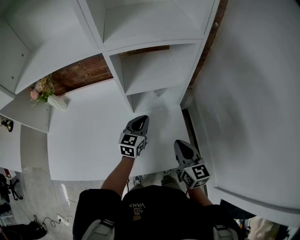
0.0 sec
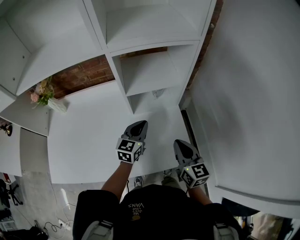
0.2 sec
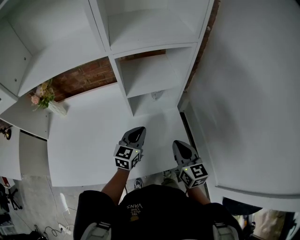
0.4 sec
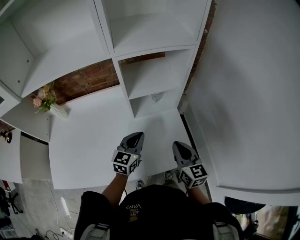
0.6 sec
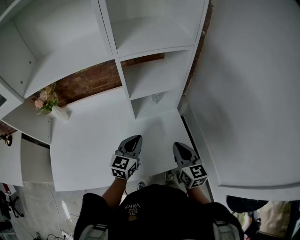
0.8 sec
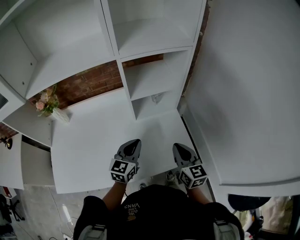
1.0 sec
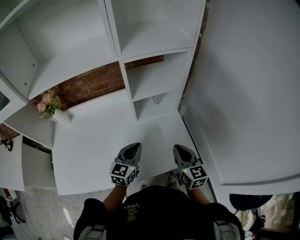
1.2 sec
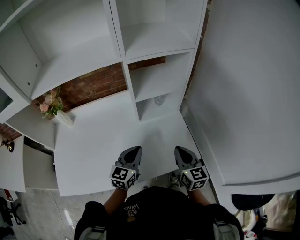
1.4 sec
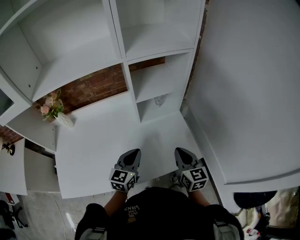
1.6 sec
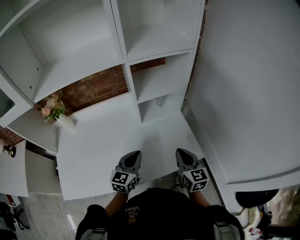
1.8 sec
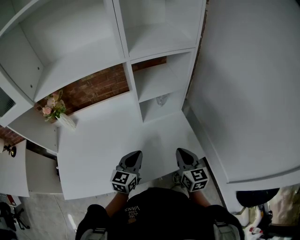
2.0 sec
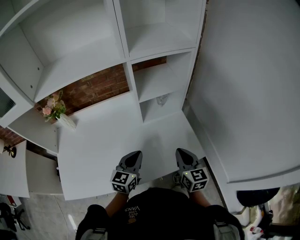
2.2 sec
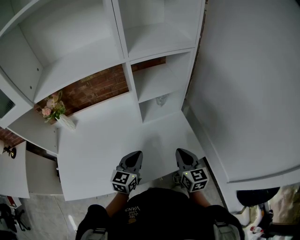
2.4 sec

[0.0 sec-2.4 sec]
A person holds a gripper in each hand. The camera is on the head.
0.0 sec to 1.2 sec: The left gripper moves backward and to the left, approximately 15 cm; the right gripper goes approximately 5 cm backward.
1.2 sec to 2.4 sec: The grippers move only a little.

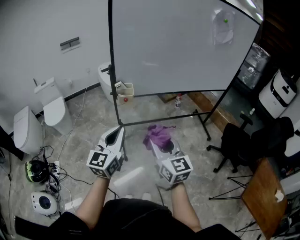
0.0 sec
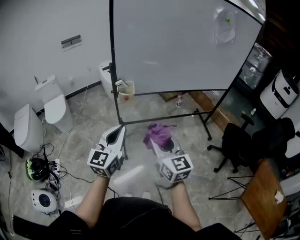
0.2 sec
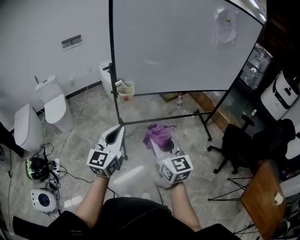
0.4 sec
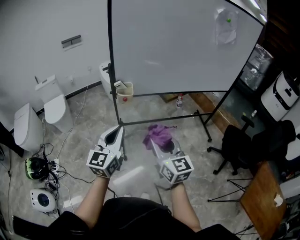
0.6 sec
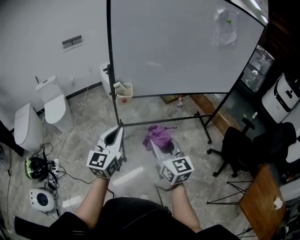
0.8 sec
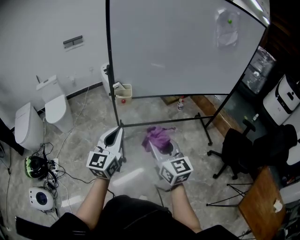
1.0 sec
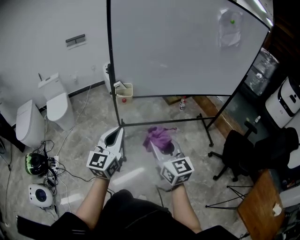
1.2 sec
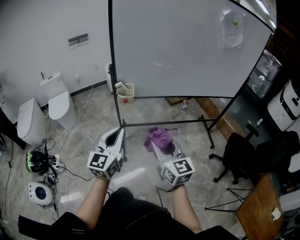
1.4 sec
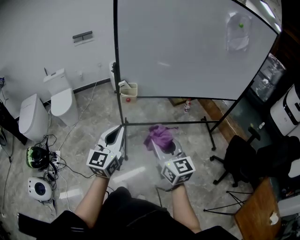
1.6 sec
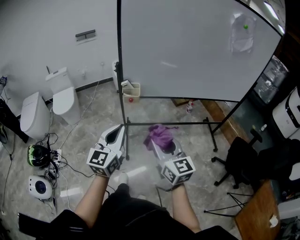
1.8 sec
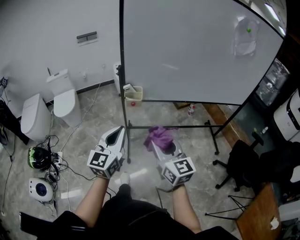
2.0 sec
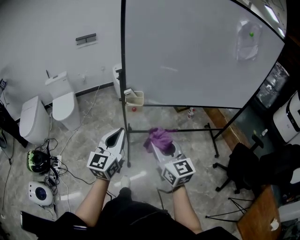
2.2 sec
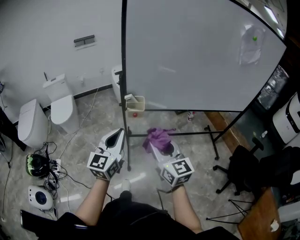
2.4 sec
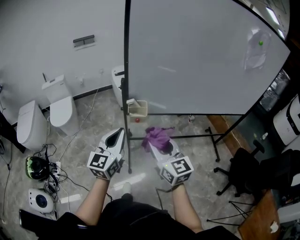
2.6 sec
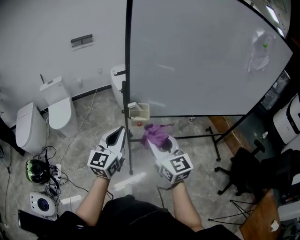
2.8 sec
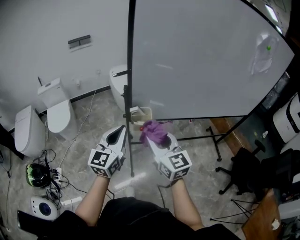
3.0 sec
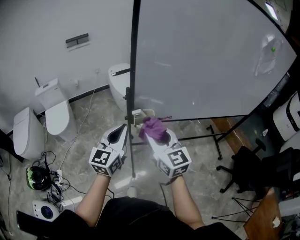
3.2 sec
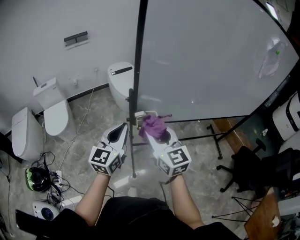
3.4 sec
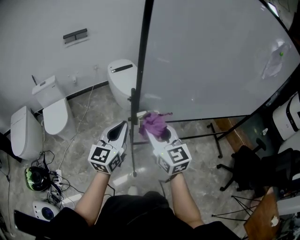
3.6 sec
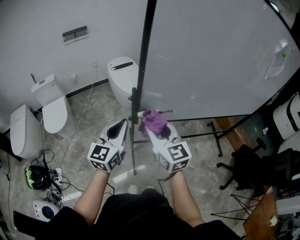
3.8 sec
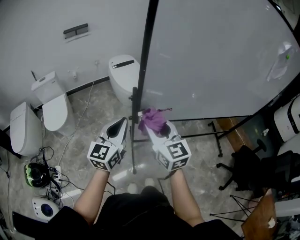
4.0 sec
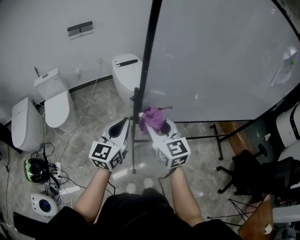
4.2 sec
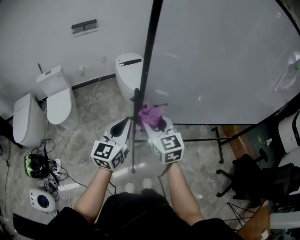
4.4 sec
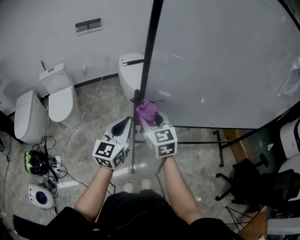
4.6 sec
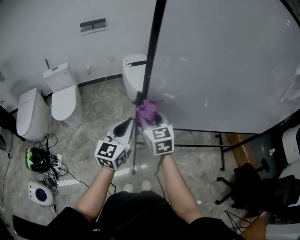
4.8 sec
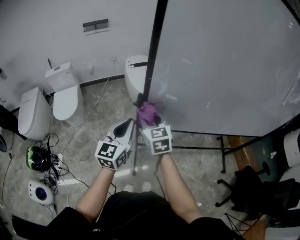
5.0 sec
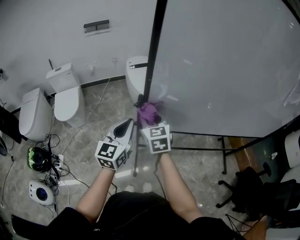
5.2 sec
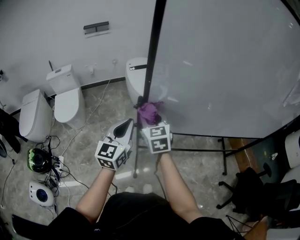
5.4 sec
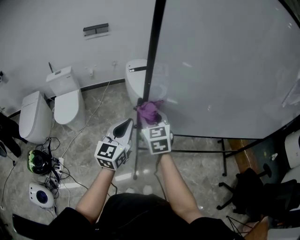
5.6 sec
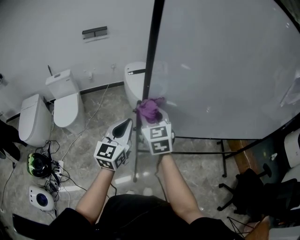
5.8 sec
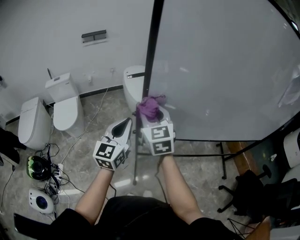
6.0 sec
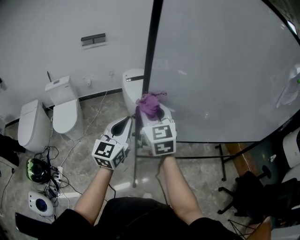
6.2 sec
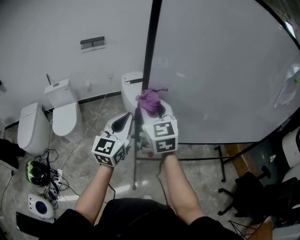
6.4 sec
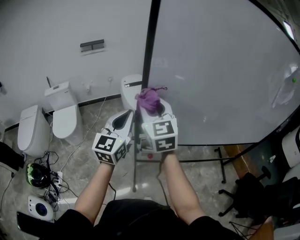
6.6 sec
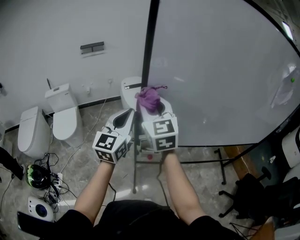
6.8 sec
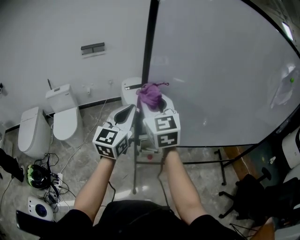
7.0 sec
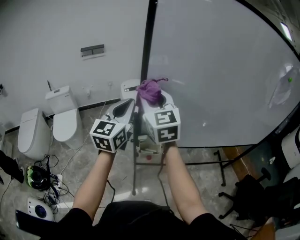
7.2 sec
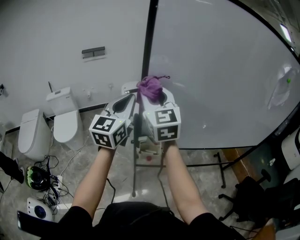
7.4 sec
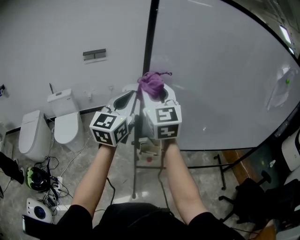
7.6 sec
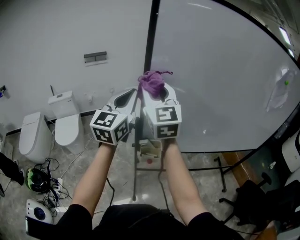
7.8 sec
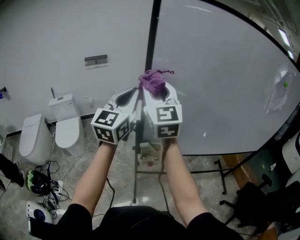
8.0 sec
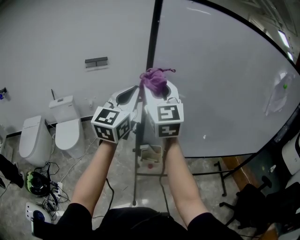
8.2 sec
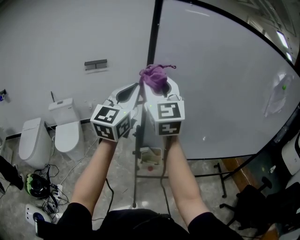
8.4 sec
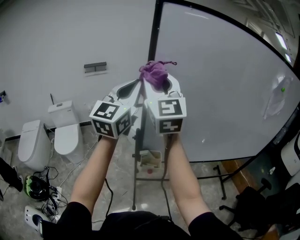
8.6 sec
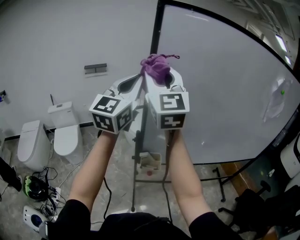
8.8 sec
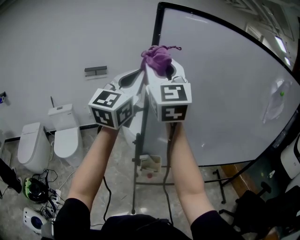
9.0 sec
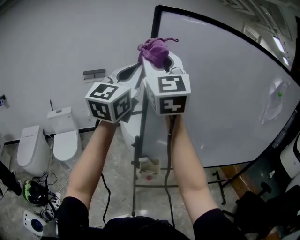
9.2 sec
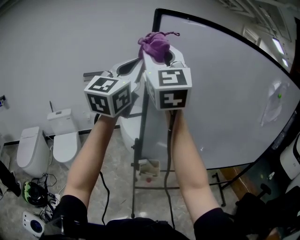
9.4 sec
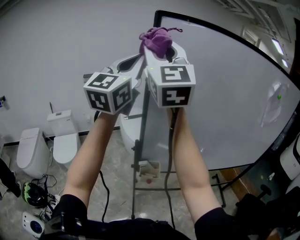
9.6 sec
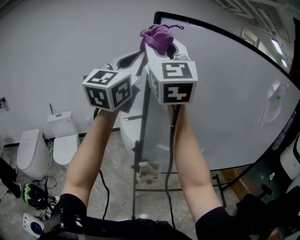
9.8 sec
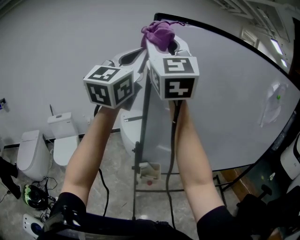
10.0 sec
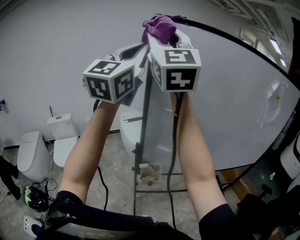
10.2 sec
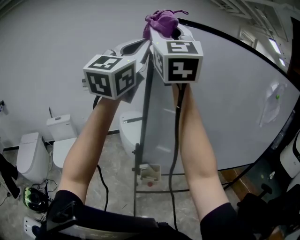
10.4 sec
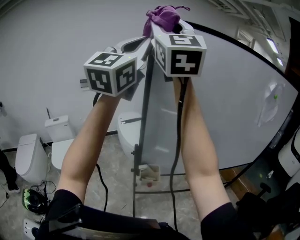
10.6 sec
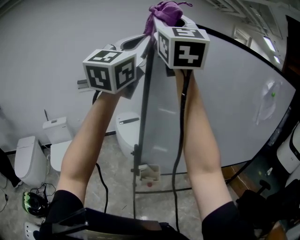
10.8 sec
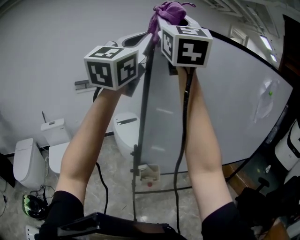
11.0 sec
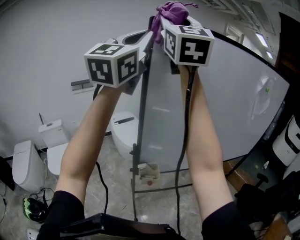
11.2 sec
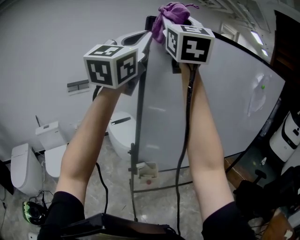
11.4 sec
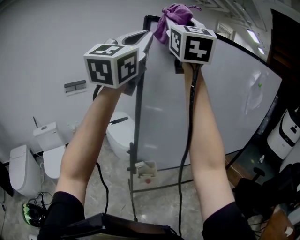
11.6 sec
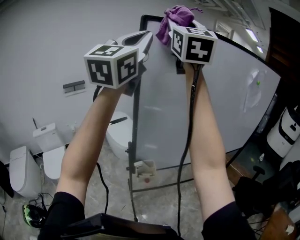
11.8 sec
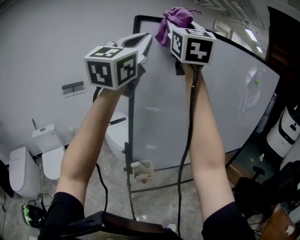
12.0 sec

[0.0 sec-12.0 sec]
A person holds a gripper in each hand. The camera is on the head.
0.0 sec to 1.6 sec: The right gripper ends up roughly 5 cm from where it was.
1.6 sec to 3.0 sec: Both grippers move forward and to the left, roughly 25 cm.
3.0 sec to 4.4 sec: The left gripper is displaced forward by some 10 cm. Meanwhile the right gripper moves forward and to the left, some 15 cm.
4.4 sec to 6.0 sec: The right gripper is displaced forward and upward by approximately 10 cm. Meanwhile the left gripper ends up about 5 cm from where it was.
6.0 sec to 7.6 sec: Both grippers travel together upward, approximately 20 cm.
7.6 sec to 9.0 sec: Both grippers move upward, approximately 15 cm.
9.0 sec to 10.4 sec: Both grippers move upward, approximately 15 cm.
10.4 sec to 12.0 sec: The right gripper travels to the right by roughly 10 cm. The left gripper travels to the right by about 5 cm.

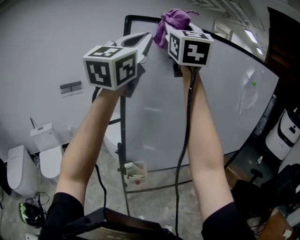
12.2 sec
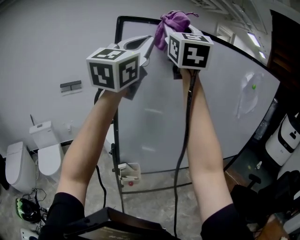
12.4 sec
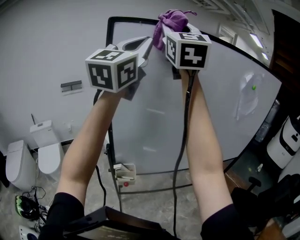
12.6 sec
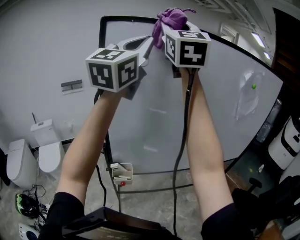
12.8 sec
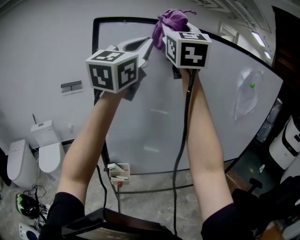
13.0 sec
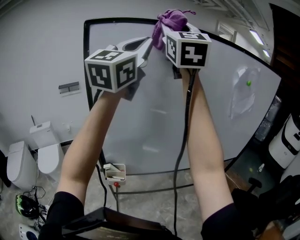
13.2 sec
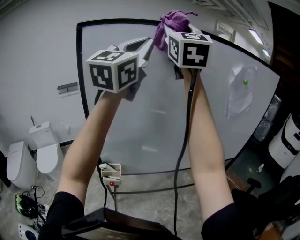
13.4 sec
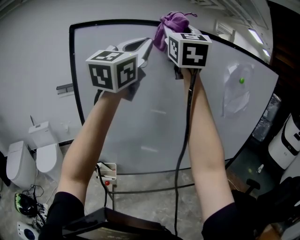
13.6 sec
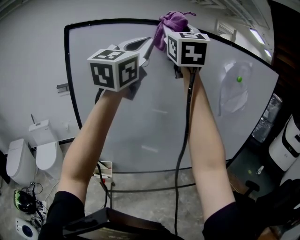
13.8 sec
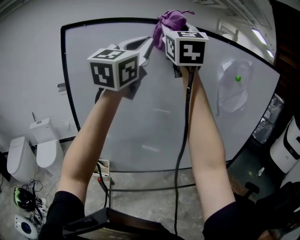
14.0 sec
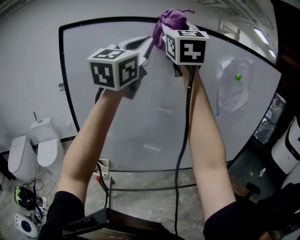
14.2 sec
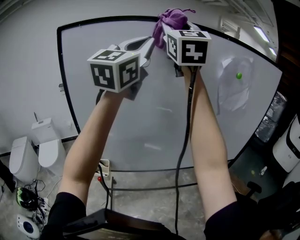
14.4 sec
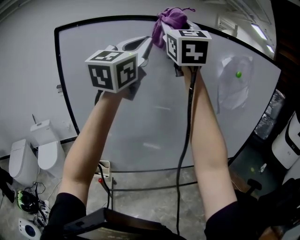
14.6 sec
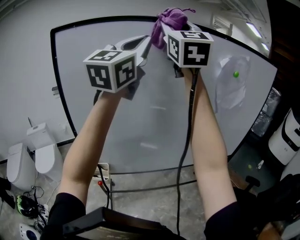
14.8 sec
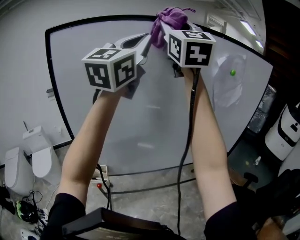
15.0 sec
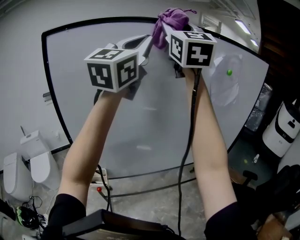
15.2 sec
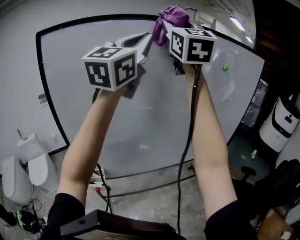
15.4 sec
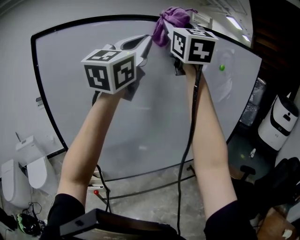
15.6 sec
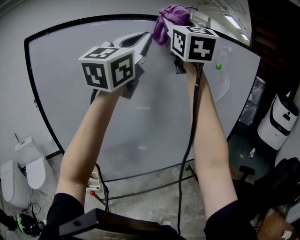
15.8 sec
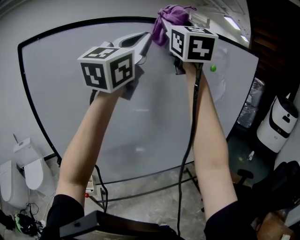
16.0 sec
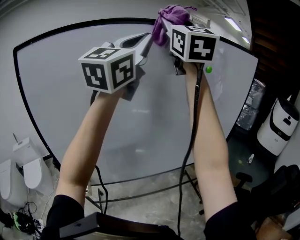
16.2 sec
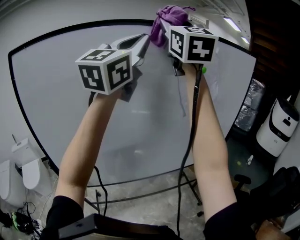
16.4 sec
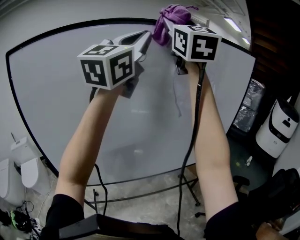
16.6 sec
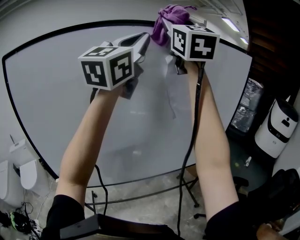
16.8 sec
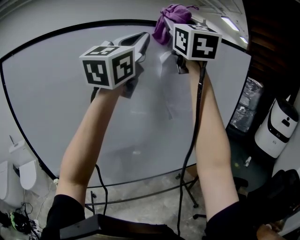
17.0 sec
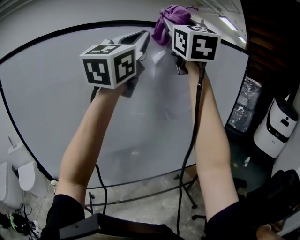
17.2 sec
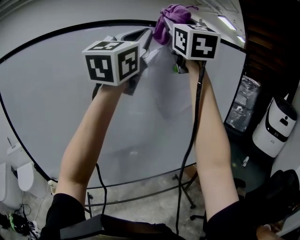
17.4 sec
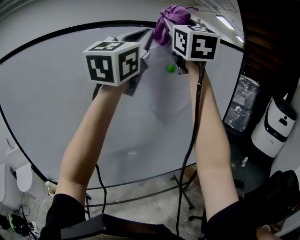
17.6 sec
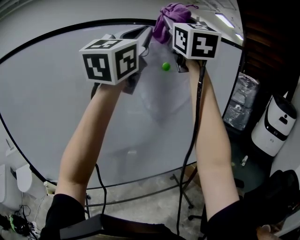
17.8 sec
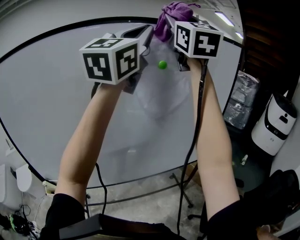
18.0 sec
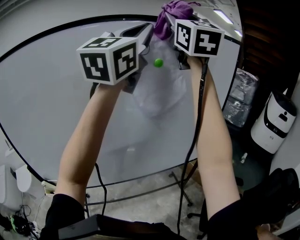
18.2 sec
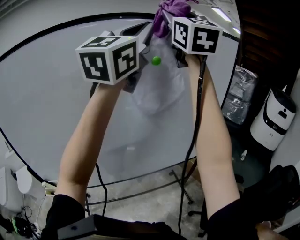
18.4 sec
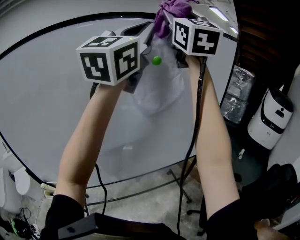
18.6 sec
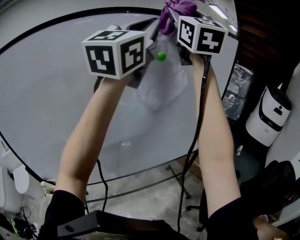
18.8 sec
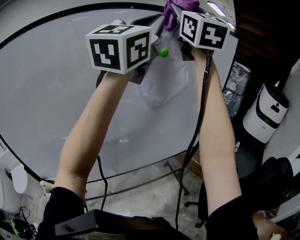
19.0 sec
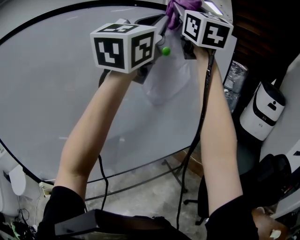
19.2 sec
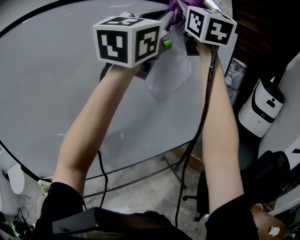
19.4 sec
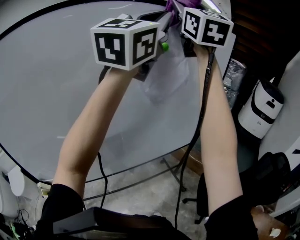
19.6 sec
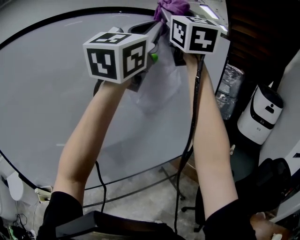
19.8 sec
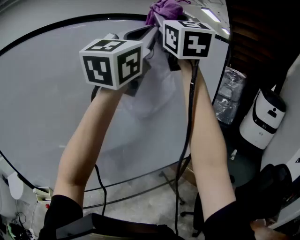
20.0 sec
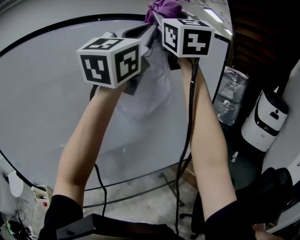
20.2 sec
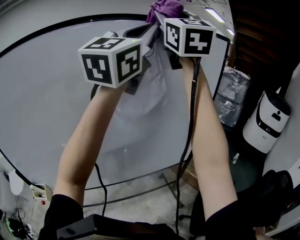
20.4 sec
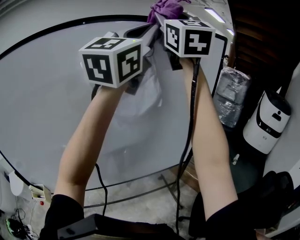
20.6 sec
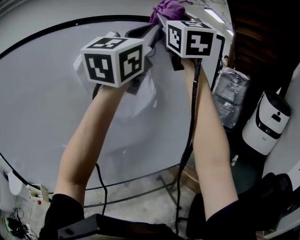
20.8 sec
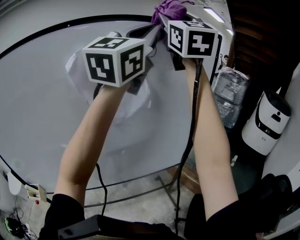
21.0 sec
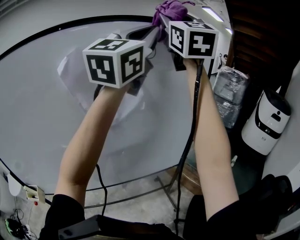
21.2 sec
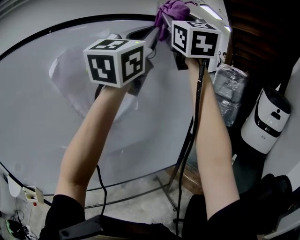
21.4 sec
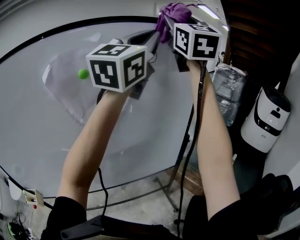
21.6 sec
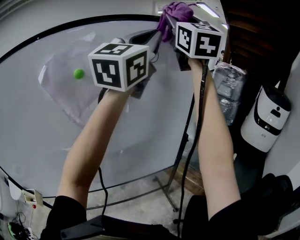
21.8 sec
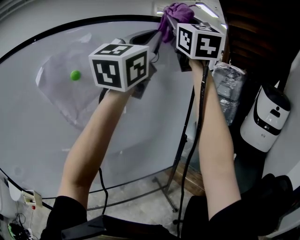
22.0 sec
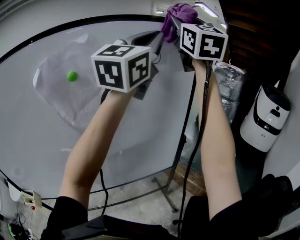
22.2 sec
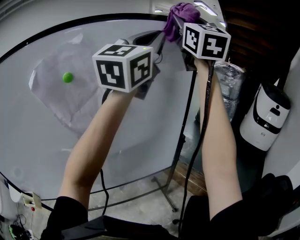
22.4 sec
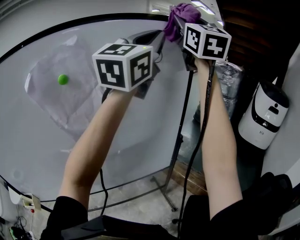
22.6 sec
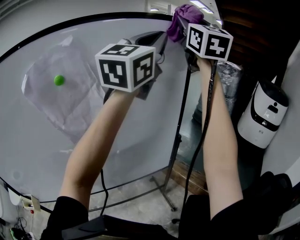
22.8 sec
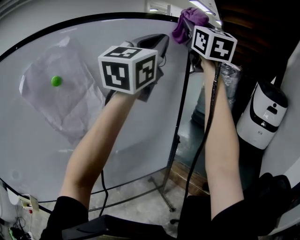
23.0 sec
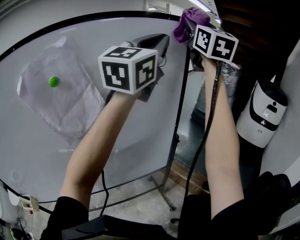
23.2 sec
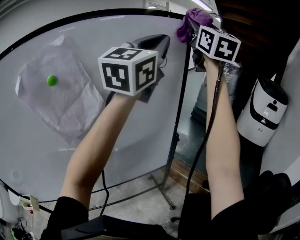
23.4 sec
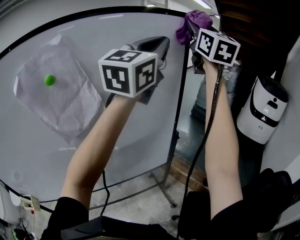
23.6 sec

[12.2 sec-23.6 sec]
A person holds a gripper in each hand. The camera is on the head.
12.2 sec to 13.6 sec: Both grippers travel together to the right, roughly 20 cm.
13.6 sec to 15.0 sec: The left gripper ends up some 5 cm from where it was.
15.0 sec to 16.4 sec: The grippers both shift to the right by some 15 cm.
16.4 sec to 17.8 sec: The two grippers go some 20 cm to the right.
17.8 sec to 19.4 sec: The grippers make only small movements.
19.4 sec to 20.8 sec: The grippers both shift to the right and forward by some 15 cm.
20.8 sec to 22.2 sec: The two grippers go some 20 cm to the right and forward.
22.2 sec to 23.6 sec: The left gripper travels to the right by approximately 5 cm, while the right gripper heads to the right and forward, covering some 15 cm.
